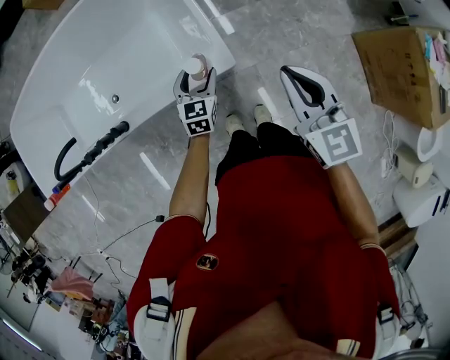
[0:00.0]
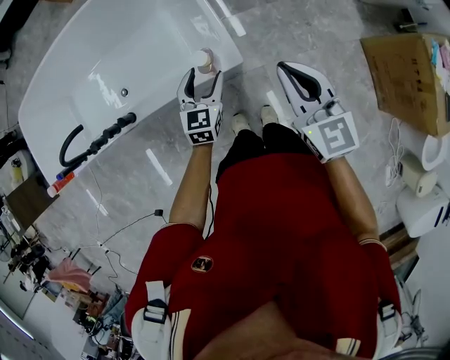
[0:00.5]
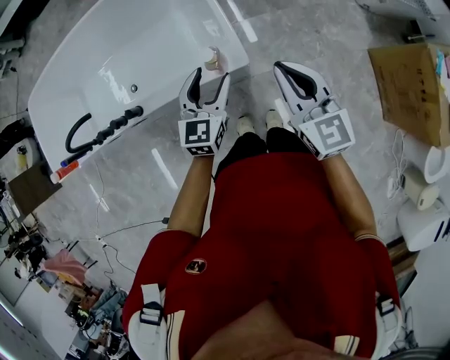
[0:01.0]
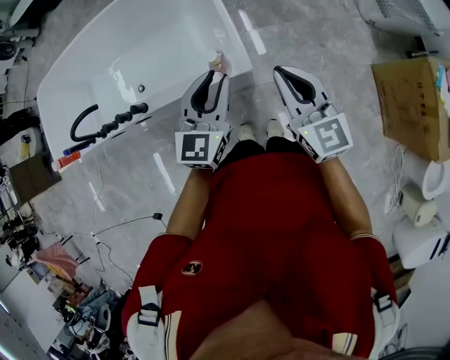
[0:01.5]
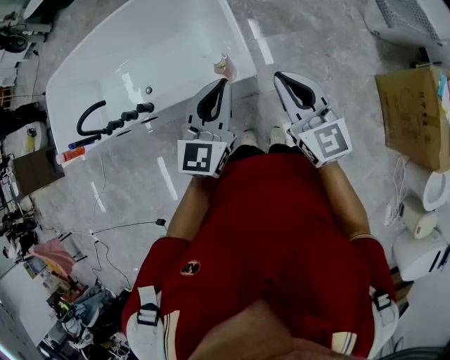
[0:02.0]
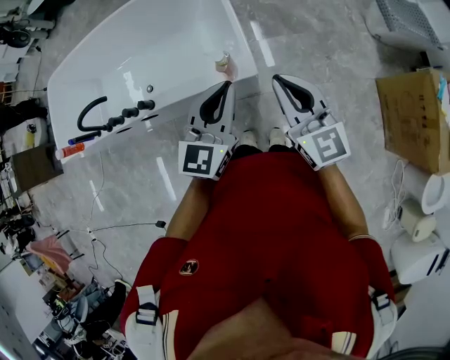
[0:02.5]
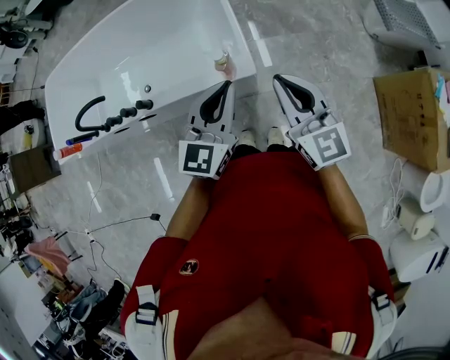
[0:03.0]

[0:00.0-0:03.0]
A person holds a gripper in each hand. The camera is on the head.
0:00.0 to 0:01.5: The right gripper goes roughly 5 cm upward, while the left gripper heads upward, covering roughly 25 cm, turns by some 20 degrees, and closes up.
0:01.5 to 0:03.0: The left gripper ends up roughly 5 cm from where it was, and closes its fingers.

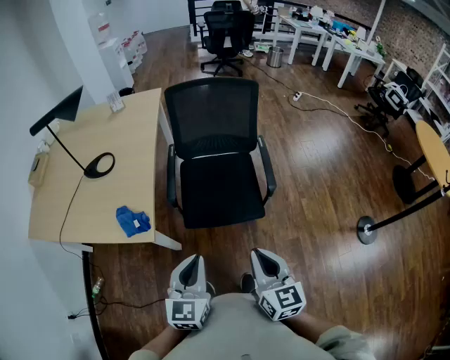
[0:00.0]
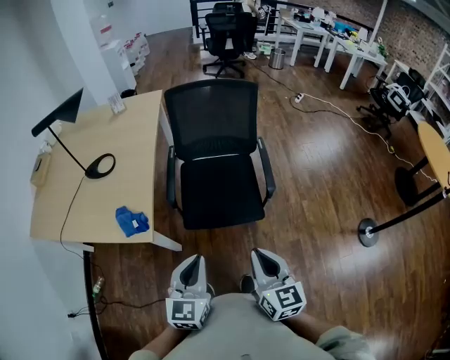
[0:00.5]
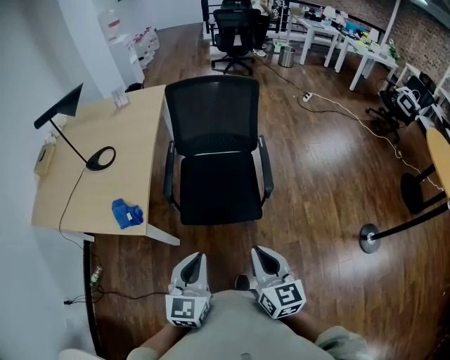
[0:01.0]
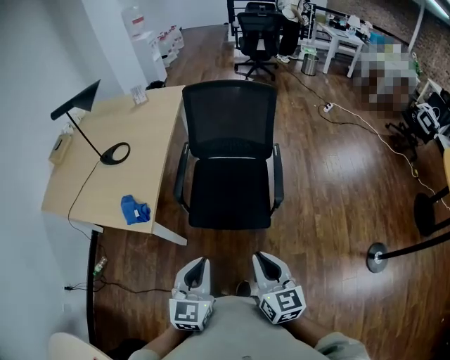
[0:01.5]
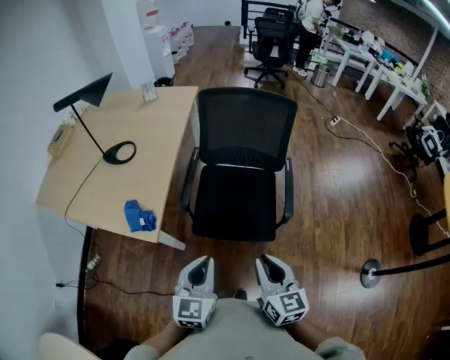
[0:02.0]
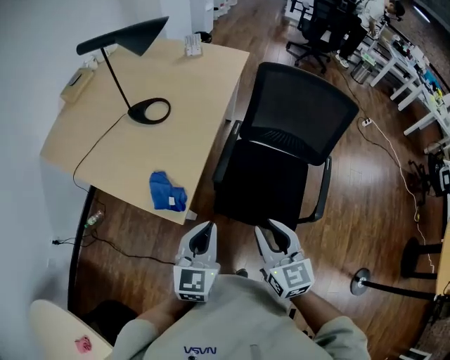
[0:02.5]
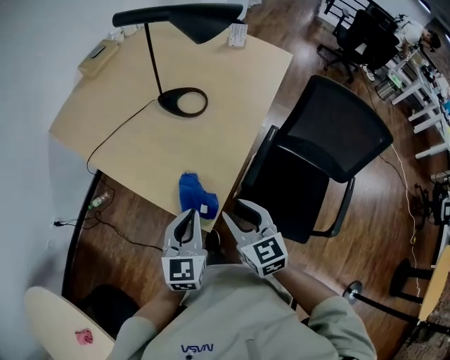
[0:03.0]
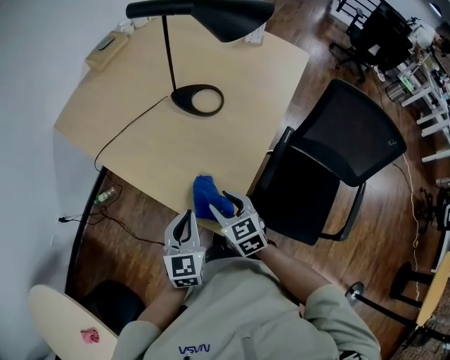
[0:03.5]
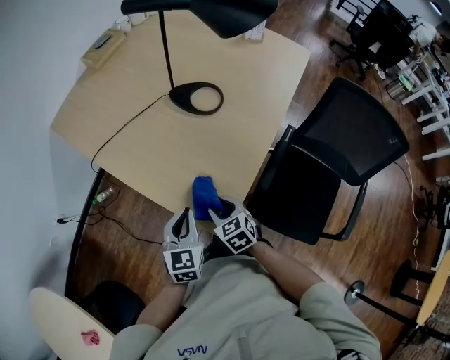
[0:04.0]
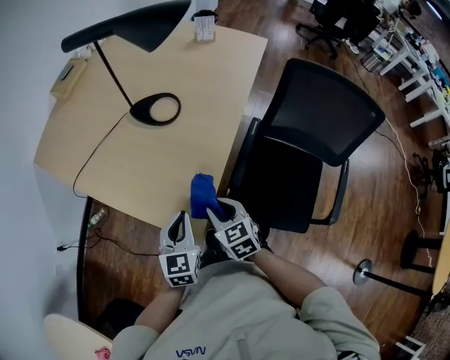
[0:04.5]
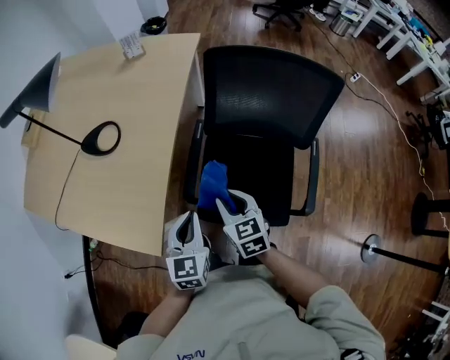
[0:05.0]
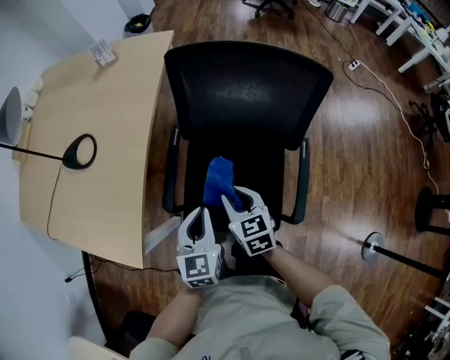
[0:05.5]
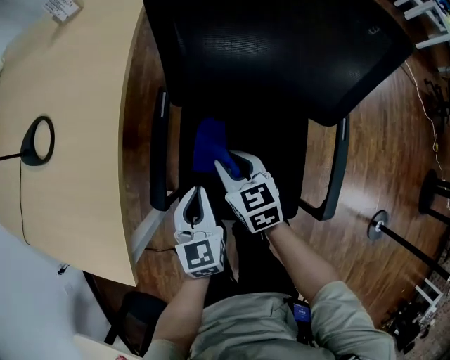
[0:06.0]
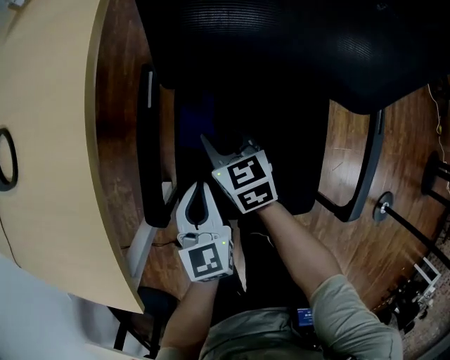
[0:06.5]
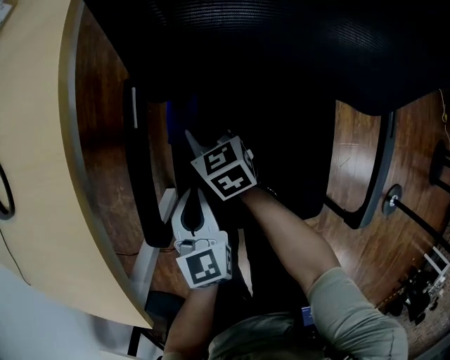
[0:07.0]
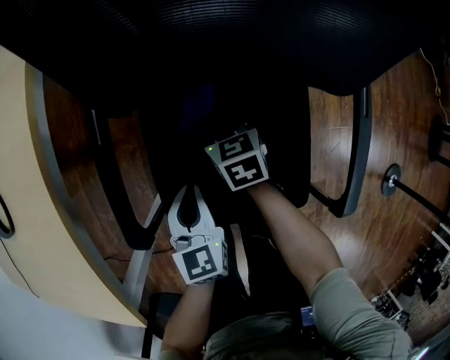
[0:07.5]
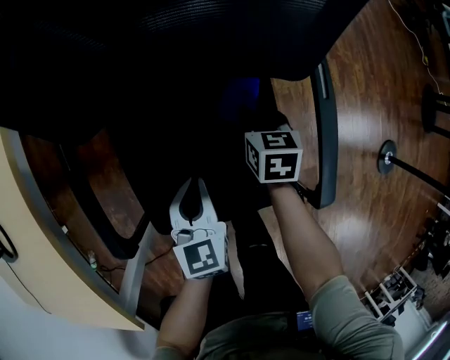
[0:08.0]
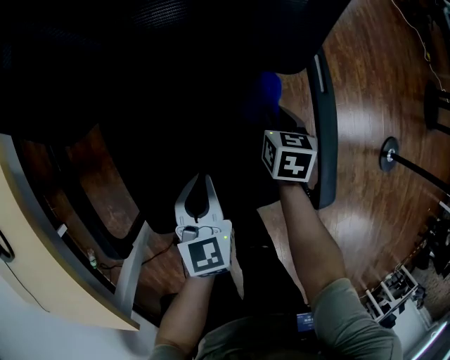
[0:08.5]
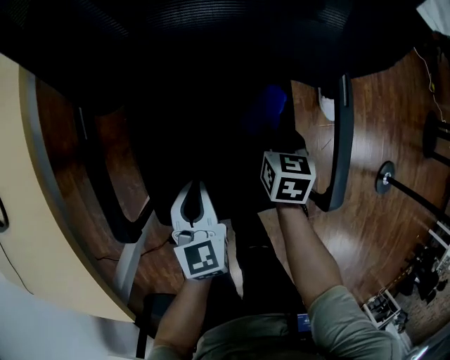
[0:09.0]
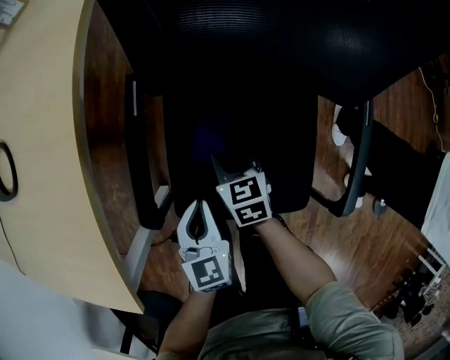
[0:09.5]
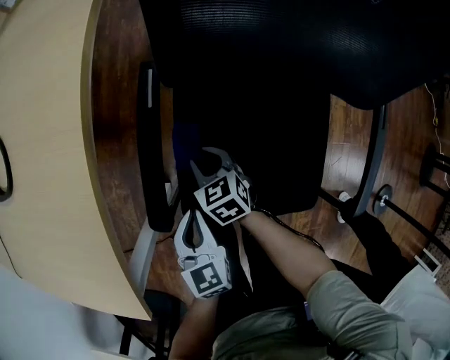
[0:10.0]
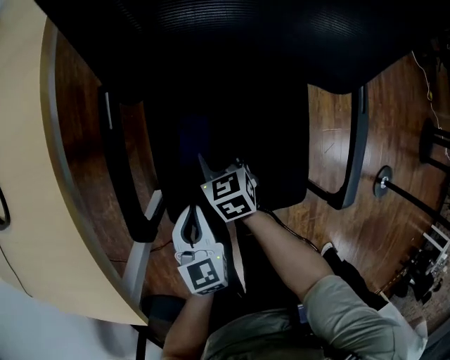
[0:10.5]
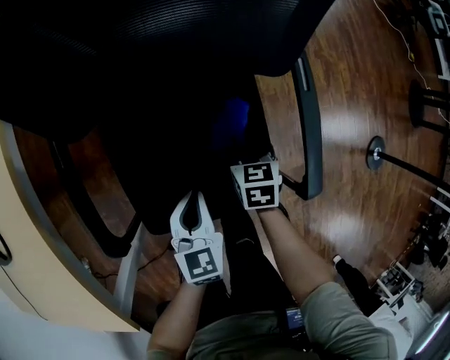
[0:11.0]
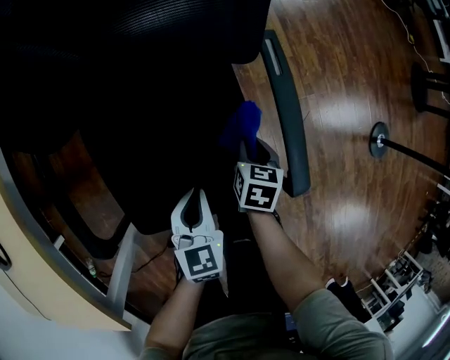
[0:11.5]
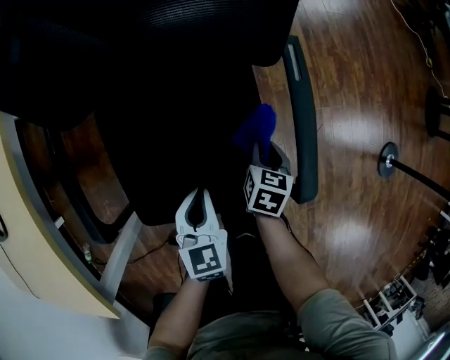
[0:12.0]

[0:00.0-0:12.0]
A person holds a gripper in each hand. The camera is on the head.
0:00.0 to 0:02.0: The two grippers go about 5 cm forward.
0:02.0 to 0:04.0: Both grippers are carried about 50 cm. The left gripper turns by roughly 30 degrees; the right gripper points its fingers roughly 30 degrees further downward, and opens its fingers.
0:04.0 to 0:06.0: The pair of grippers is taken roughly 40 cm. The right gripper rotates some 40 degrees.
0:06.0 to 0:08.0: The left gripper ends up about 15 cm from where it was, and changes its angle by some 20 degrees. Meanwhile the right gripper changes place by some 30 cm, and rotates some 40 degrees.
0:08.0 to 0:10.0: The right gripper ends up roughly 35 cm from where it was, and rotates about 40 degrees. The left gripper changes place by roughly 20 cm, and rotates about 20 degrees.
0:10.0 to 0:12.0: The right gripper moves approximately 40 cm, and swivels some 60 degrees; the left gripper ends up roughly 25 cm from where it was, and turns by approximately 20 degrees.

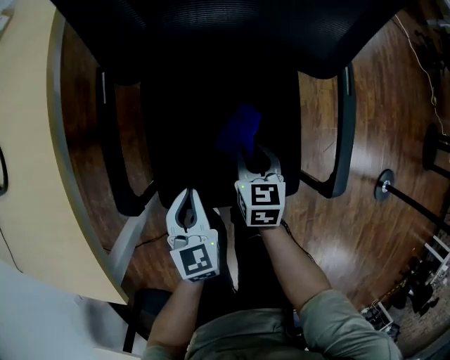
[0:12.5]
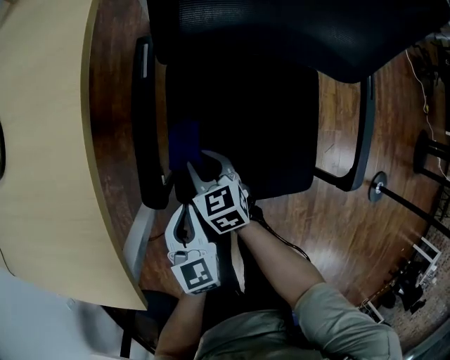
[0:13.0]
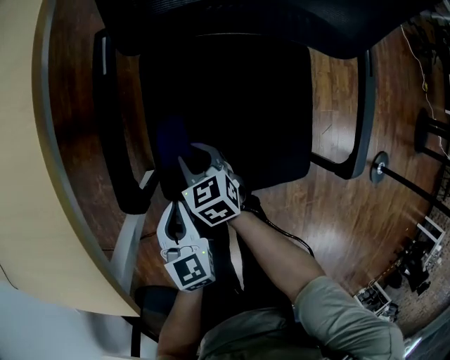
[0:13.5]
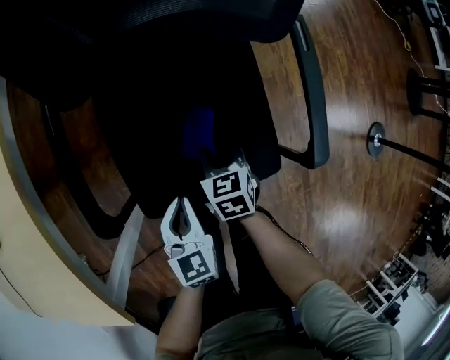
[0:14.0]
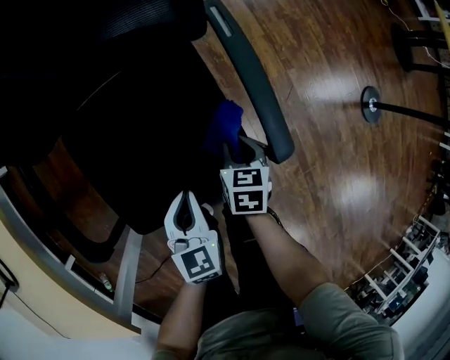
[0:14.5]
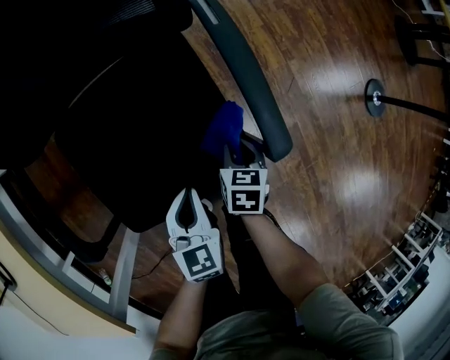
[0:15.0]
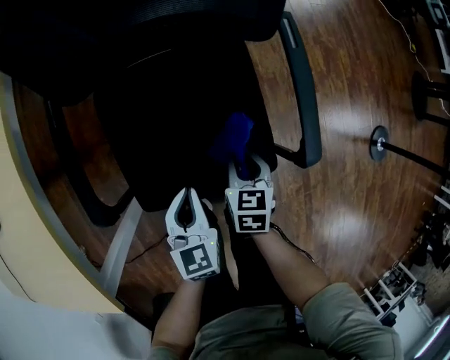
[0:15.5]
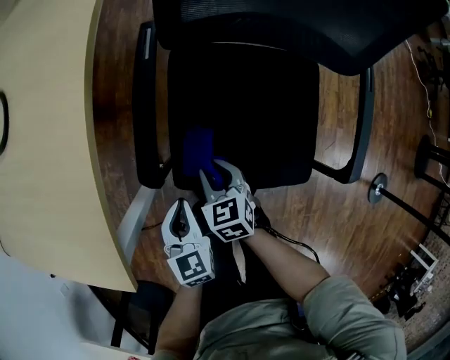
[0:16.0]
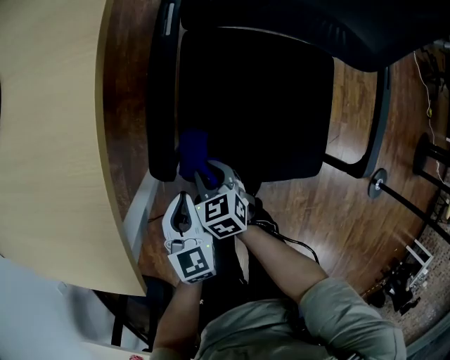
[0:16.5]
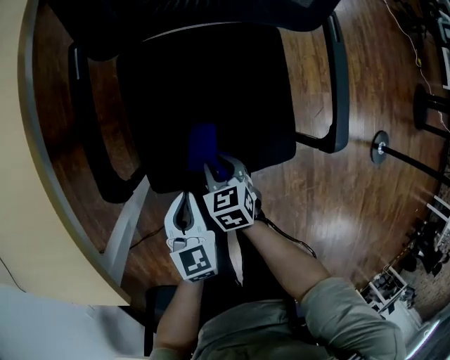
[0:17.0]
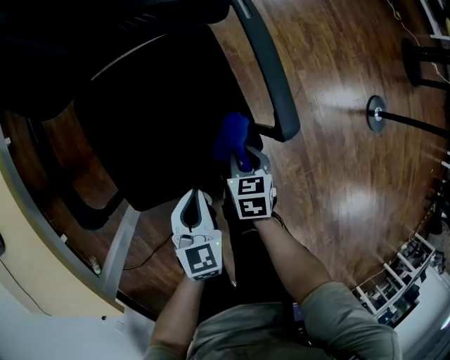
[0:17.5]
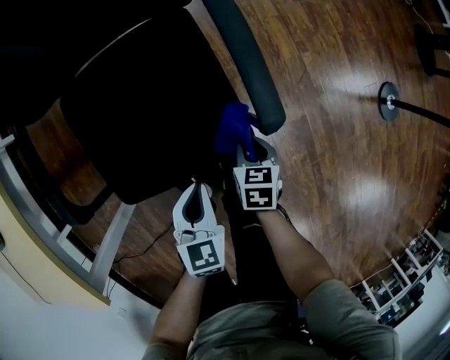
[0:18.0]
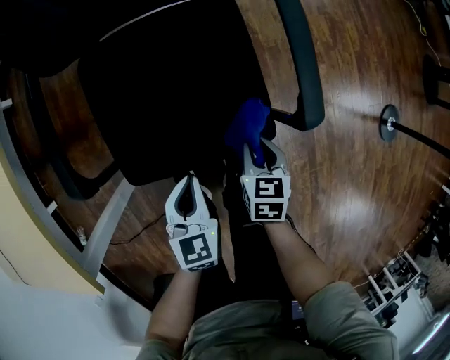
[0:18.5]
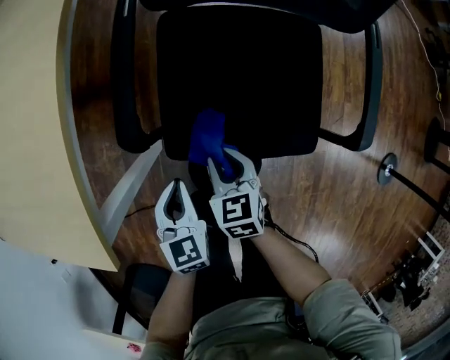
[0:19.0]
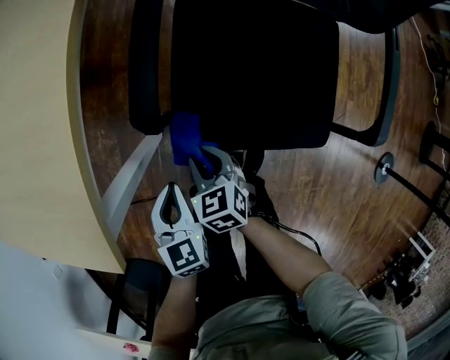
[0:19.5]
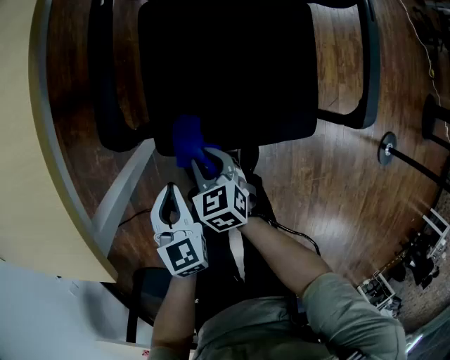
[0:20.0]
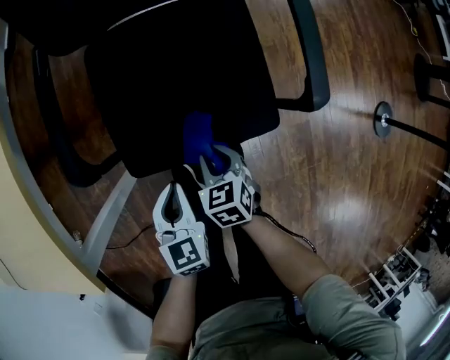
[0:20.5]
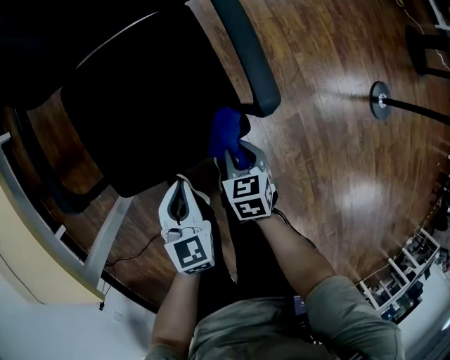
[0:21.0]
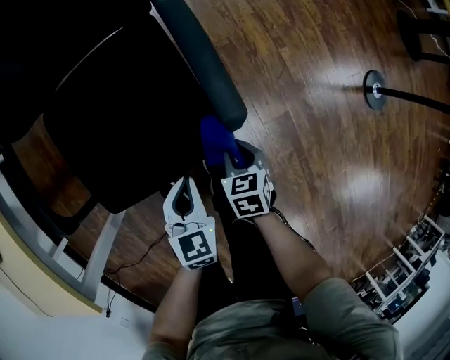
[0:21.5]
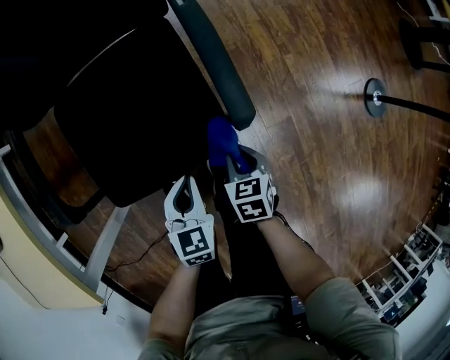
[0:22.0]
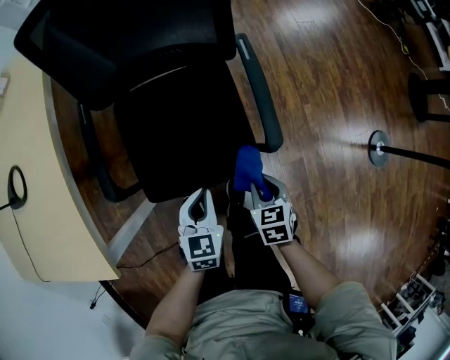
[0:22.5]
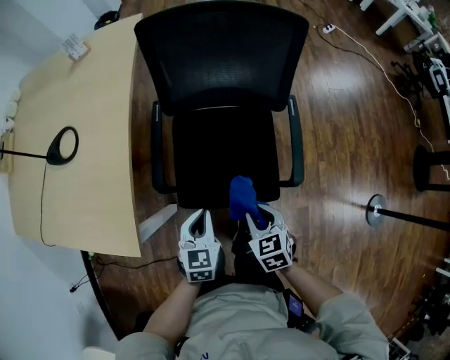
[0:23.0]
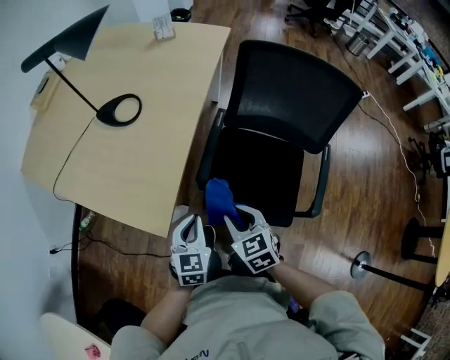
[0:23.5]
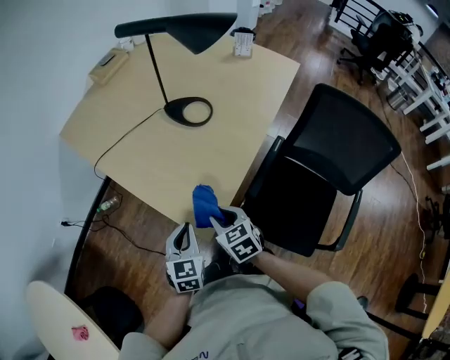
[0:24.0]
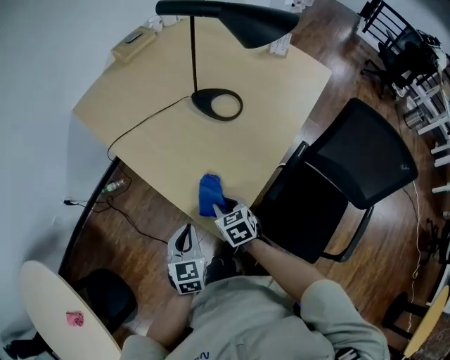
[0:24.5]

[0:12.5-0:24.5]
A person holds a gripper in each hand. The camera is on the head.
0:12.5 to 0:14.5: The left gripper ends up roughly 15 cm from where it was, and turns by roughly 20 degrees, while the right gripper moves roughly 20 cm, and rotates approximately 30 degrees.
0:14.5 to 0:16.5: The left gripper shifts by roughly 30 cm, and rotates some 30 degrees, while the right gripper changes place by roughly 40 cm, and changes its angle by roughly 50 degrees.
0:16.5 to 0:18.5: The right gripper ends up roughly 35 cm from where it was, and changes its angle by some 40 degrees, while the left gripper changes place by approximately 25 cm, and turns by approximately 20 degrees.
0:18.5 to 0:20.5: The right gripper changes its angle by about 20 degrees.
0:20.5 to 0:22.5: The right gripper goes approximately 25 cm to the right and upward, while the left gripper is displaced to the right, upward and forward by some 20 cm.
0:22.5 to 0:24.5: The pair of grippers is taken some 60 cm. The right gripper turns by roughly 60 degrees, while the left gripper turns by approximately 60 degrees.
